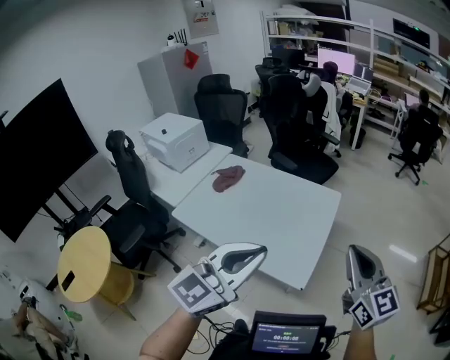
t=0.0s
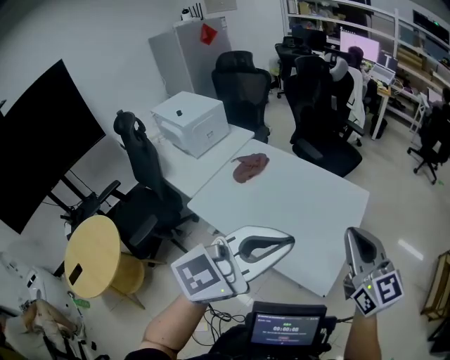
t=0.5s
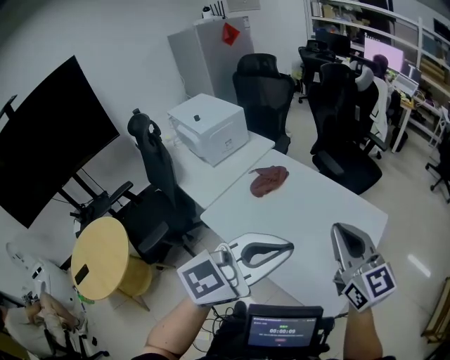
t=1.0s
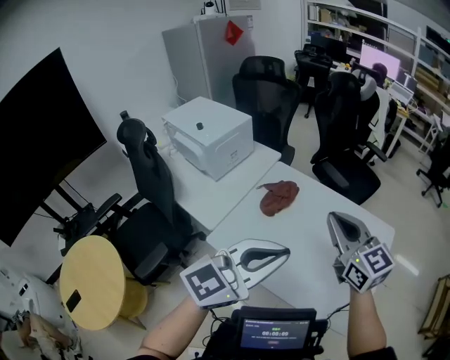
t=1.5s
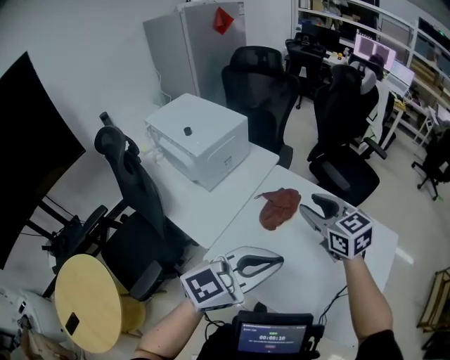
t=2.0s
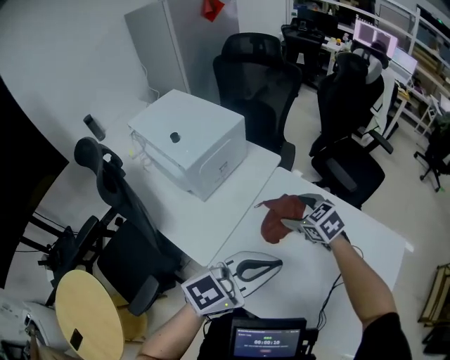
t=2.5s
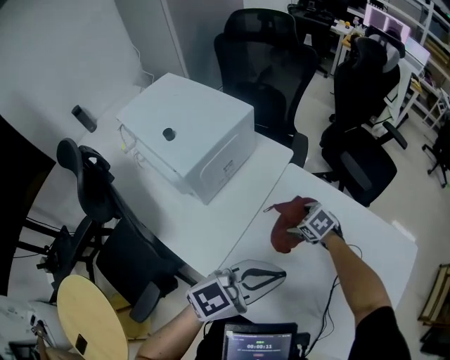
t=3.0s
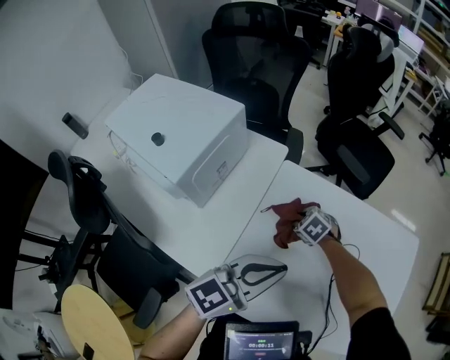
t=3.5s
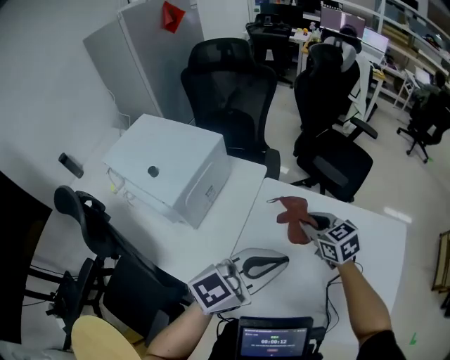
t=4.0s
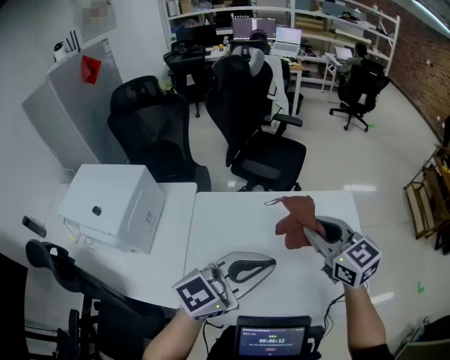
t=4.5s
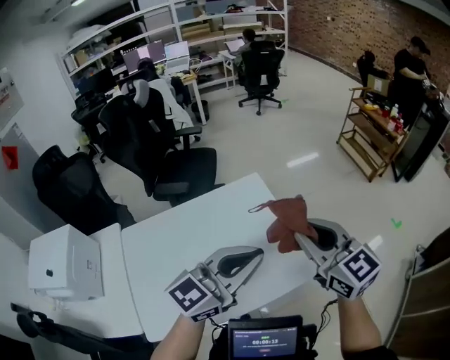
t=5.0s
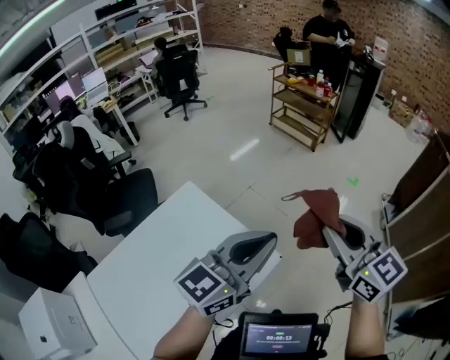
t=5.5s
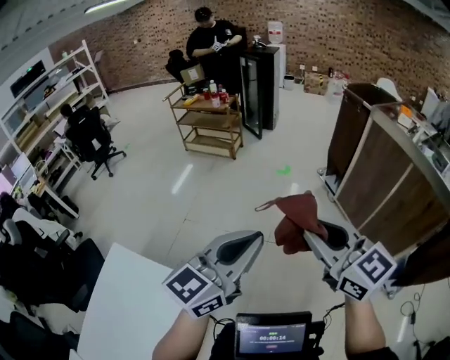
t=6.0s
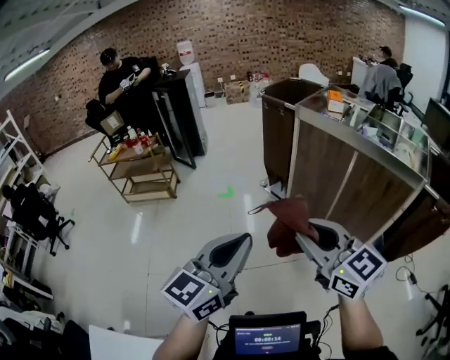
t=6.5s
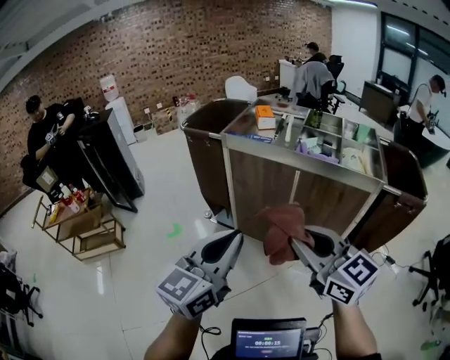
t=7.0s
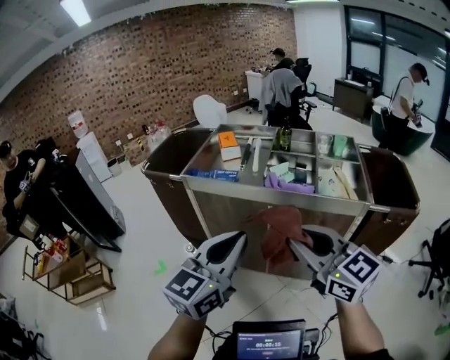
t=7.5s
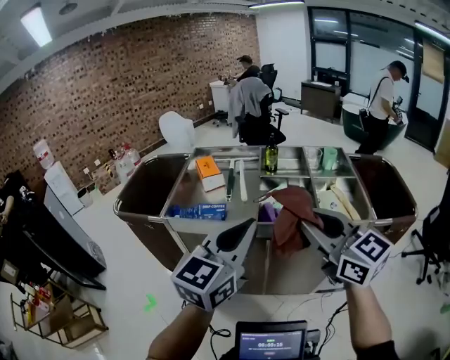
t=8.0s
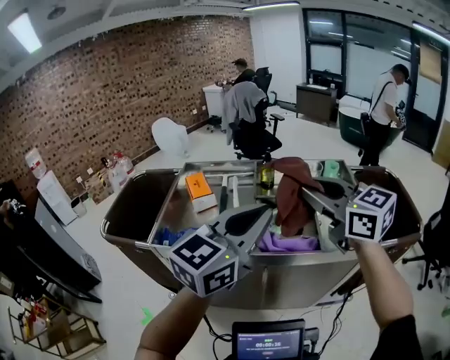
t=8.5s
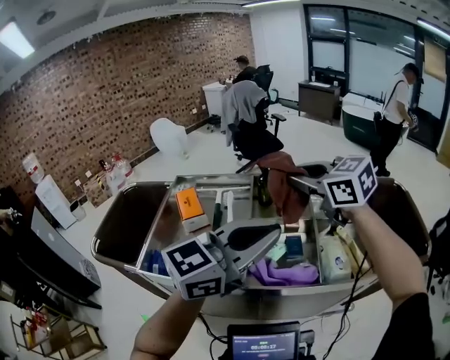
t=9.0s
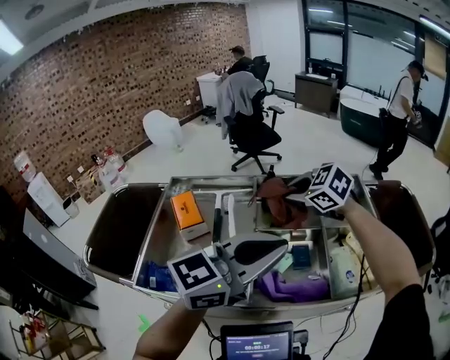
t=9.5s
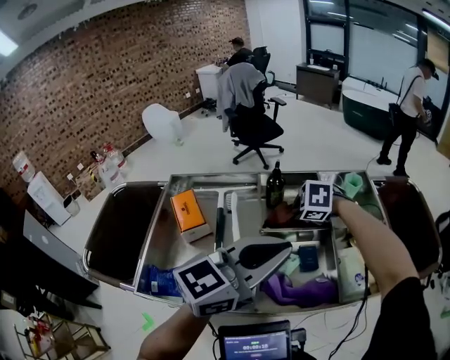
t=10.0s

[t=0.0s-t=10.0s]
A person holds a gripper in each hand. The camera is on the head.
t=0.0s to t=2.0s: The pair of grippers is taken to the left and forward, some 80 cm. The right gripper turns by roughly 30 degrees, and opens up.
t=2.0s to t=4.0s: The left gripper moves forward, some 25 cm; the right gripper goes approximately 25 cm forward and downward, and opens and closes again.
t=4.0s to t=6.0s: Both grippers are carried about 1.5 m. The right gripper tips its fingers upward by approximately 30 degrees. The left gripper turns by some 80 degrees.
t=6.0s to t=8.0s: The pair of grippers is taken roughly 1 m. The left gripper rotates roughly 50 degrees. The right gripper turns by approximately 60 degrees.
t=8.0s to t=10.0s: Both grippers are carried forward, some 50 cm. The right gripper angles its fingers downward, by roughly 70 degrees; the left gripper changes its angle by roughly 30 degrees.

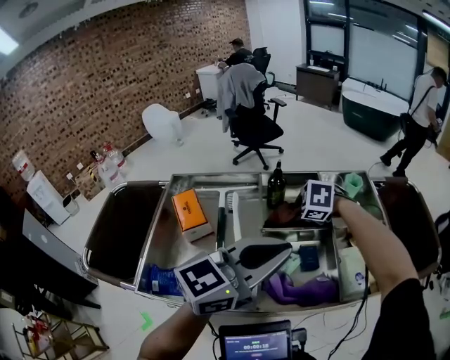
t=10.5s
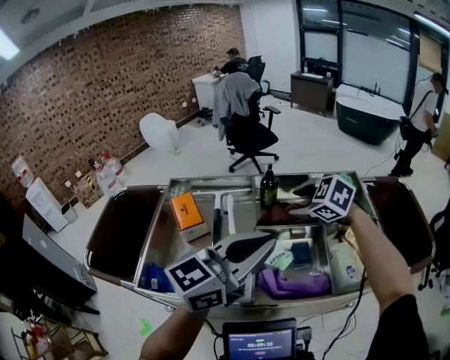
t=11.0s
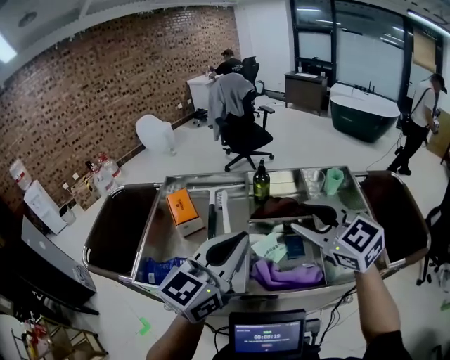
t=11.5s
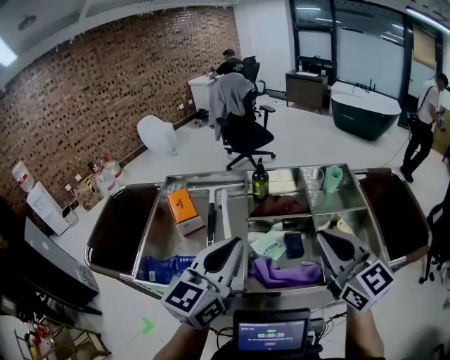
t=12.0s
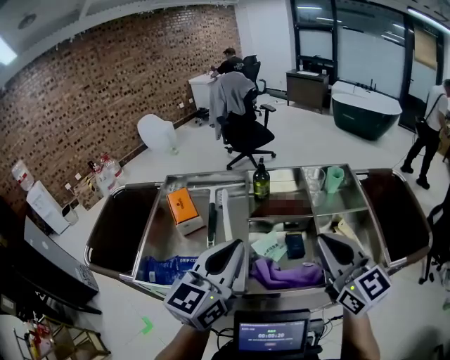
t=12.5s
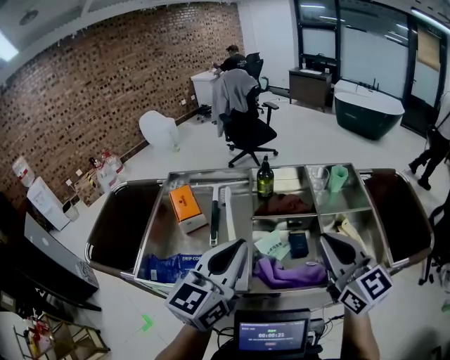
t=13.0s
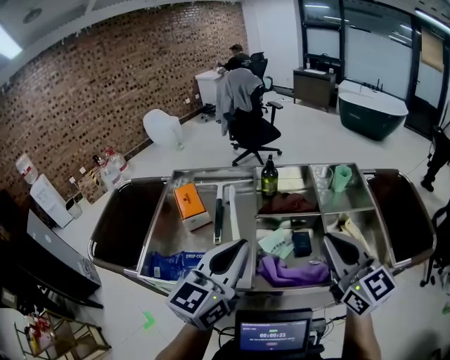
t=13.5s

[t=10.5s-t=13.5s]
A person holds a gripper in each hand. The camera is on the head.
t=10.5s to t=12.0s: The left gripper moves backward and to the left, approximately 5 cm, and turns by approximately 30 degrees. Meanwhile the right gripper moves backward and upward, roughly 35 cm, and angles its fingers upward, by roughly 70 degrees.
t=12.0s to t=13.5s: There are only small adjustments of the grippers.

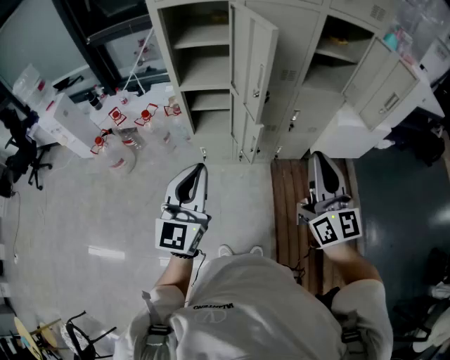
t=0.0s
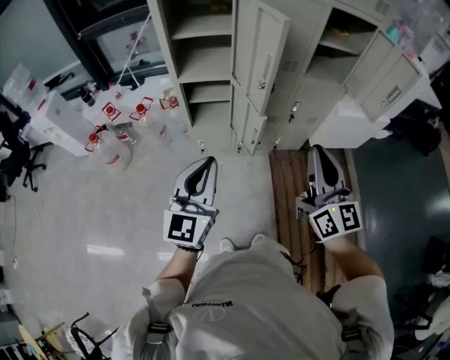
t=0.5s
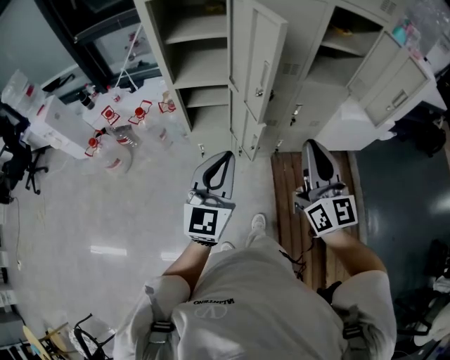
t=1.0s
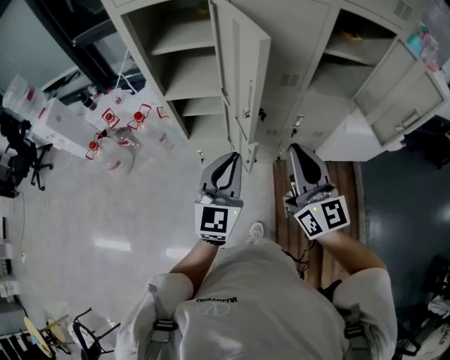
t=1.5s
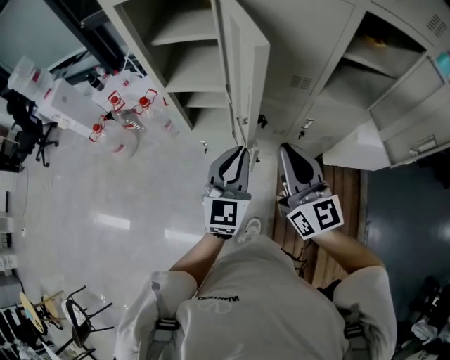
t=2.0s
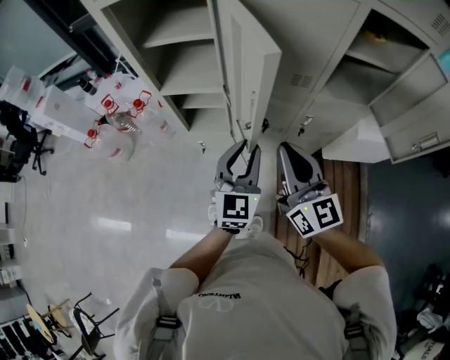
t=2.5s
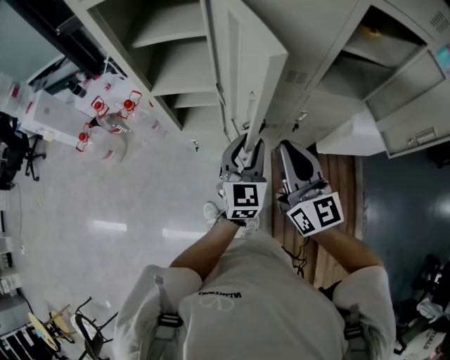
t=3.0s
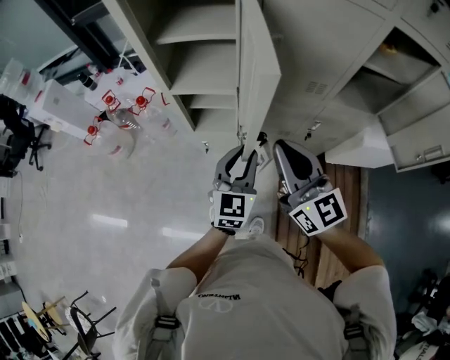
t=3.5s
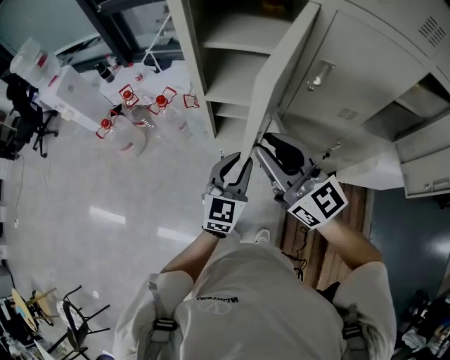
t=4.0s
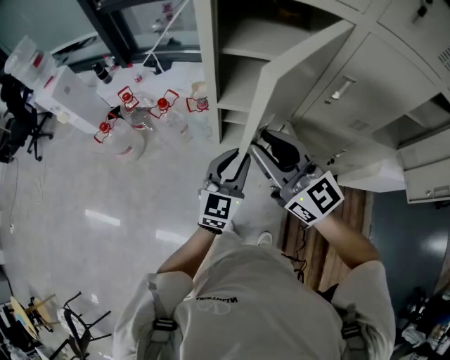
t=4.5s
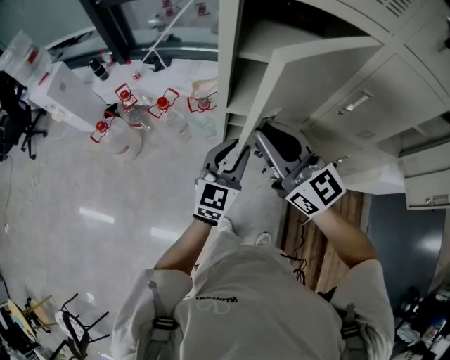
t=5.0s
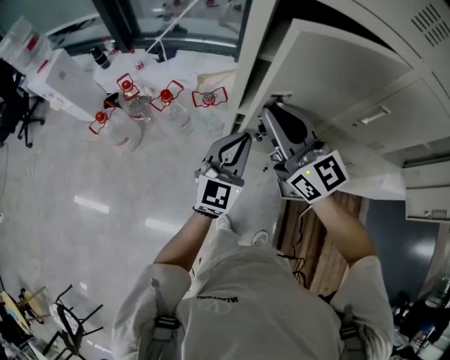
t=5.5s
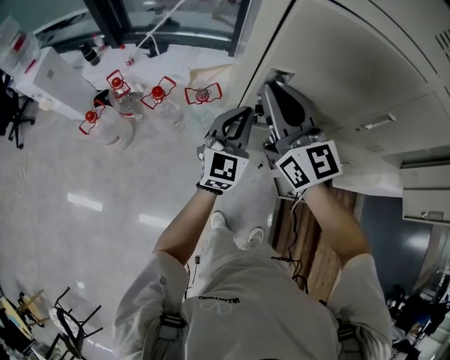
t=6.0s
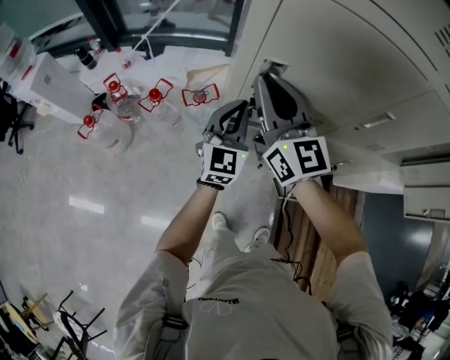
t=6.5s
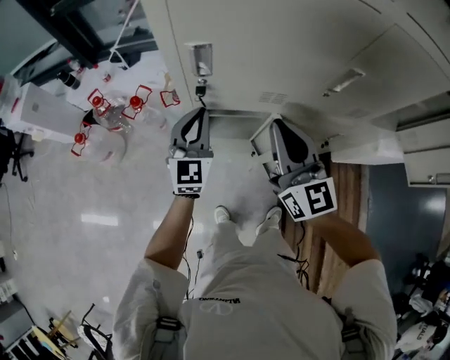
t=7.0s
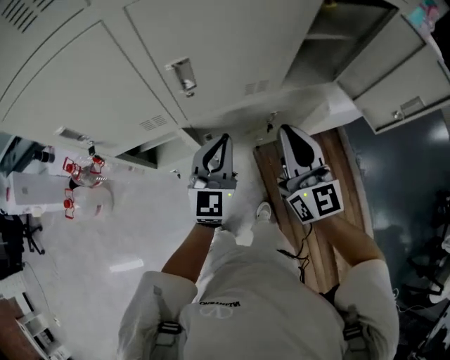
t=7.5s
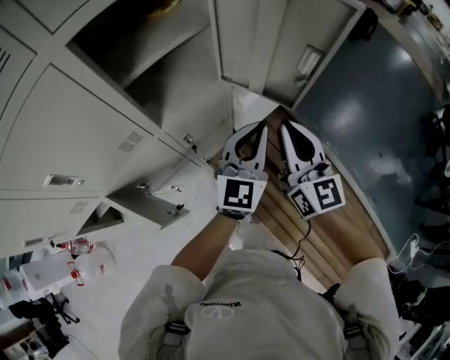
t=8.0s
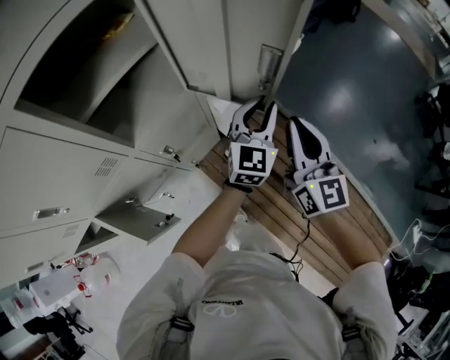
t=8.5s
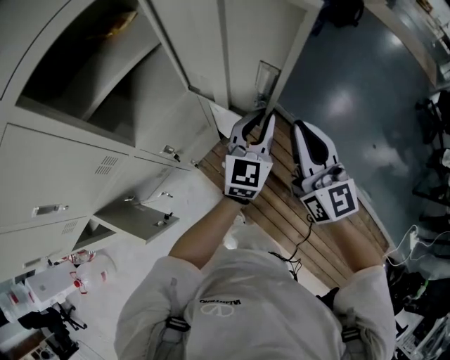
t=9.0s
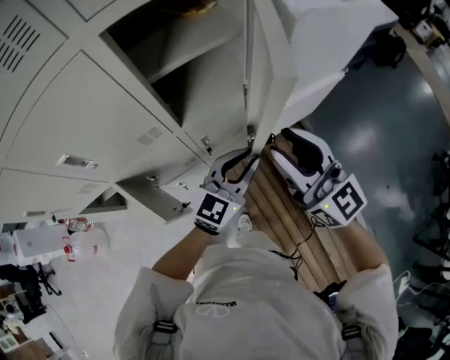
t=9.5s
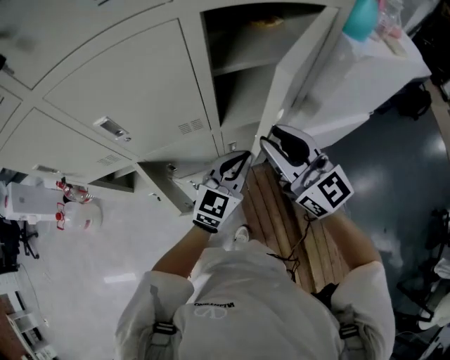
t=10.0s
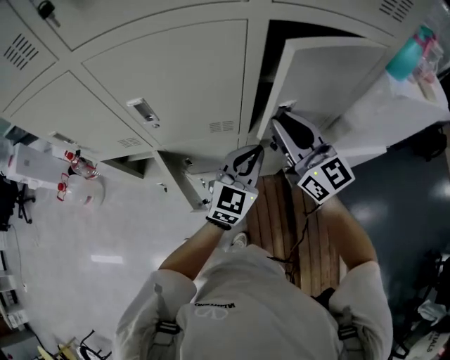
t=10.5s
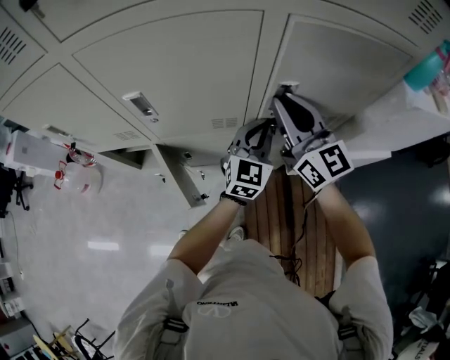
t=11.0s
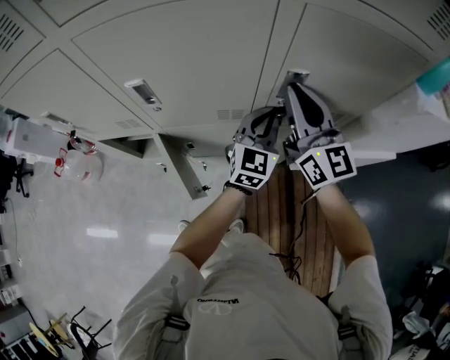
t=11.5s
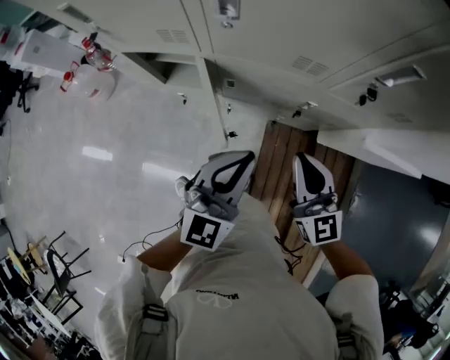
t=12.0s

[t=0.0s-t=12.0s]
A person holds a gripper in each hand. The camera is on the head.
t=0.0s to t=2.0s: The left gripper goes some 30 cm forward, to the right and downward, while the right gripper is displaced forward by about 20 cm.
t=2.0s to t=4.0s: The grippers both shift to the left and forward by approximately 20 cm. The right gripper swivels about 20 degrees, and opens up.
t=4.0s to t=6.0s: The right gripper goes approximately 25 cm forward and to the left; the left gripper shifts approximately 20 cm forward.
t=6.0s to t=8.0s: The two grippers travel together, some 80 cm. The left gripper rotates about 50 degrees. Meanwhile the right gripper rotates roughly 60 degrees.
t=8.0s to t=10.0s: The right gripper shifts by roughly 20 cm, turns by approximately 40 degrees, and opens; the left gripper changes place by about 15 cm.
t=10.0s to t=12.0s: The left gripper goes approximately 20 cm to the left and backward, and rotates roughly 30 degrees; the right gripper goes about 20 cm downward and to the left, moves about 15 cm forward and comes back, and closes up.

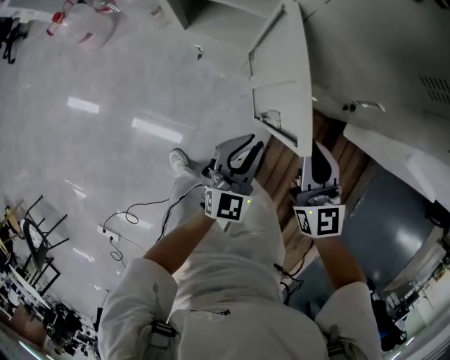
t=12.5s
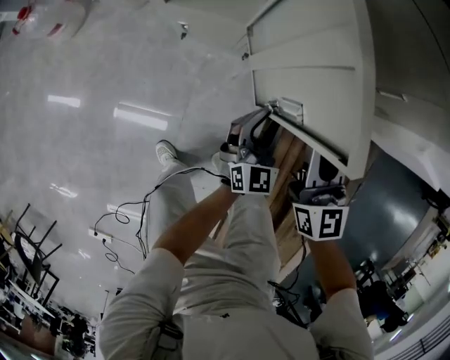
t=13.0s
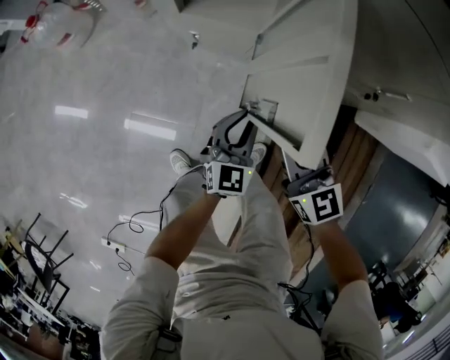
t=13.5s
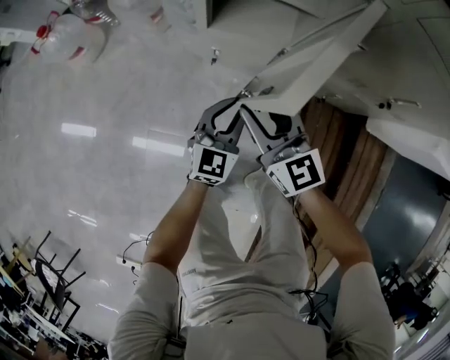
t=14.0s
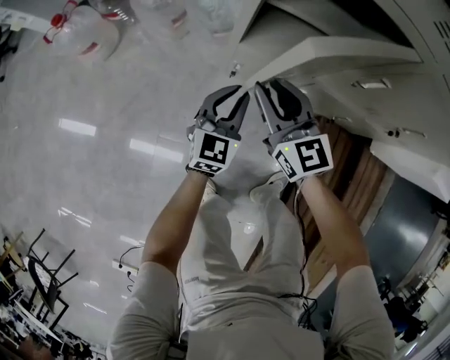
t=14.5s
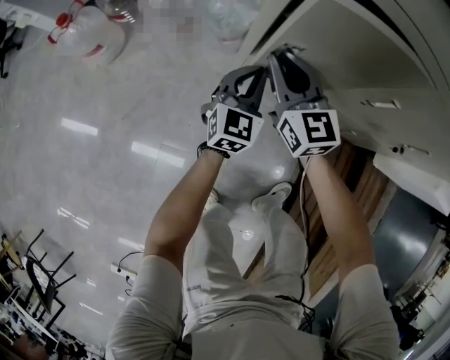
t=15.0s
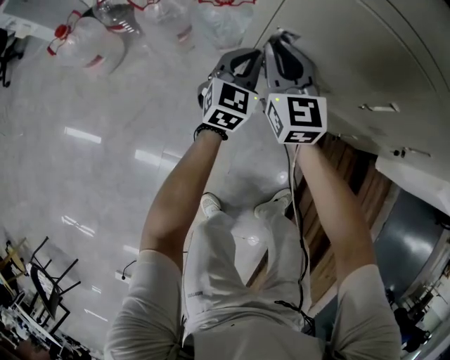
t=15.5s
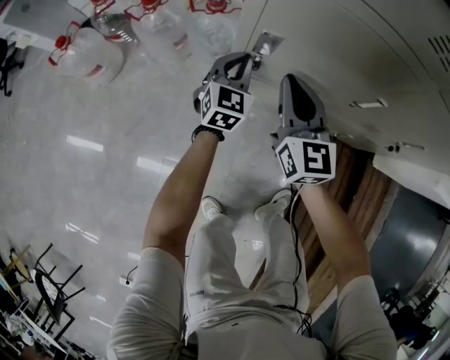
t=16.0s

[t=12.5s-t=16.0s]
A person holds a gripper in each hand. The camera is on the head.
t=12.5s to t=14.5s: The right gripper heads to the left and forward, covering roughly 35 cm, and opens up. The left gripper goes roughly 35 cm to the left, forward and downward.
t=14.5s to t=16.0s: The left gripper goes roughly 15 cm forward. Meanwhile the right gripper travels forward by approximately 10 cm, and closes up.
